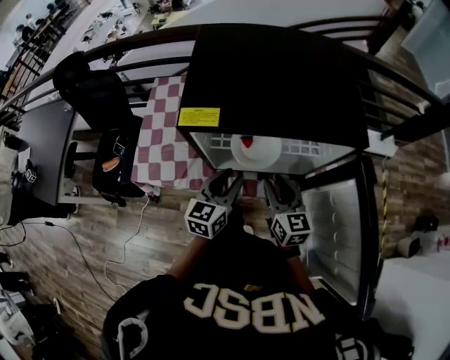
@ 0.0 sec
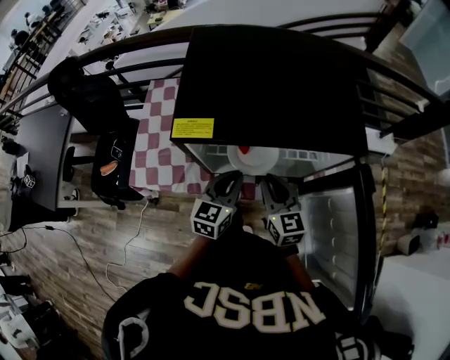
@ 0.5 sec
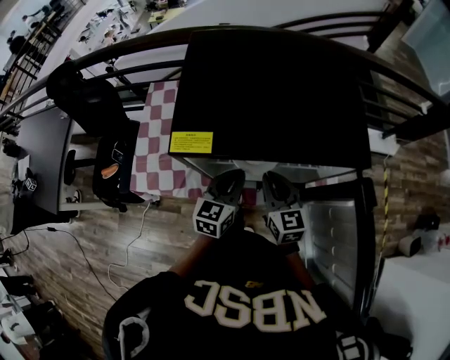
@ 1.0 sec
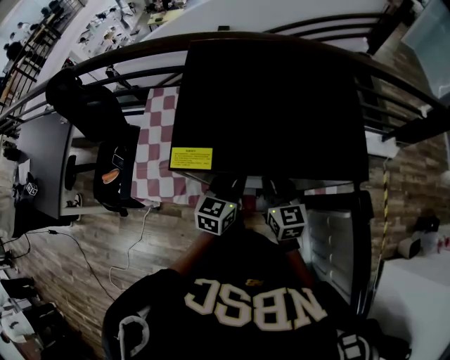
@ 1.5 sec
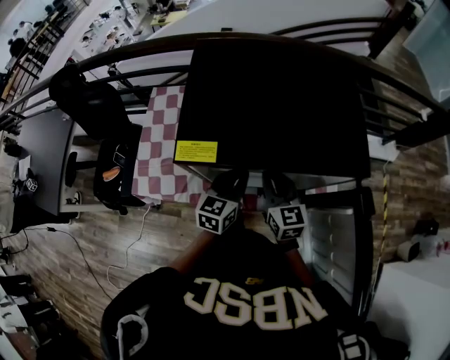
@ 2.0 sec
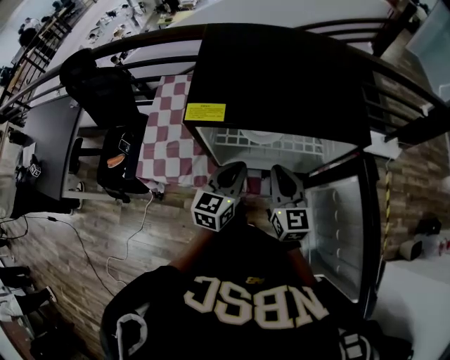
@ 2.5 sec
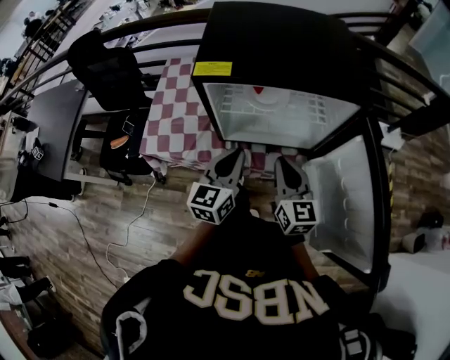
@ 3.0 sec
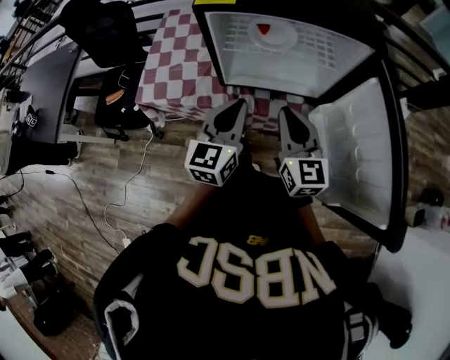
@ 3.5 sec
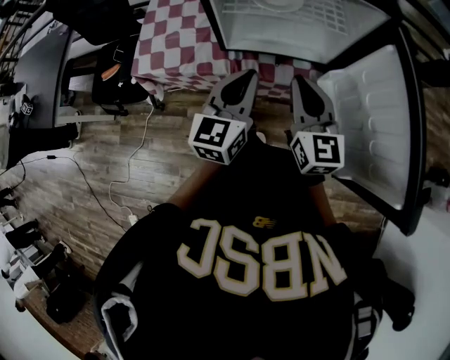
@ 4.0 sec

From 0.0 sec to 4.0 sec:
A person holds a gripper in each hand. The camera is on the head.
From 0.0 sec to 2.0 sec: The grippers both shift forward by some 10 cm. The right gripper closes up. The left gripper closes its fingers.
From 2.0 sec to 4.0 sec: The grippers both shift backward by about 20 cm.

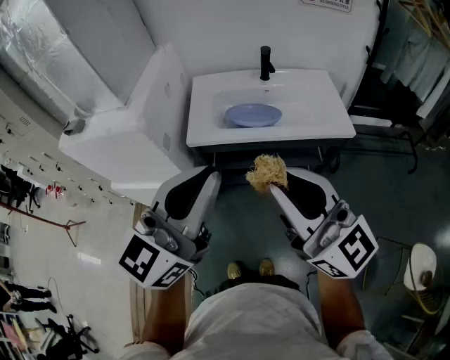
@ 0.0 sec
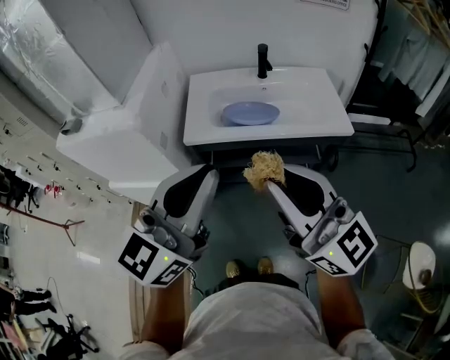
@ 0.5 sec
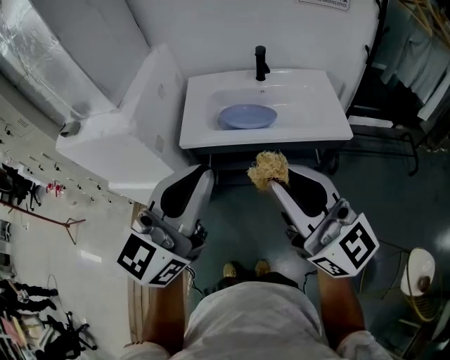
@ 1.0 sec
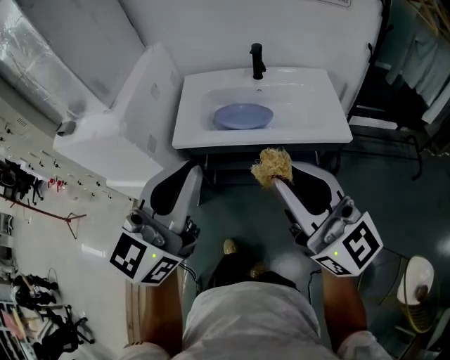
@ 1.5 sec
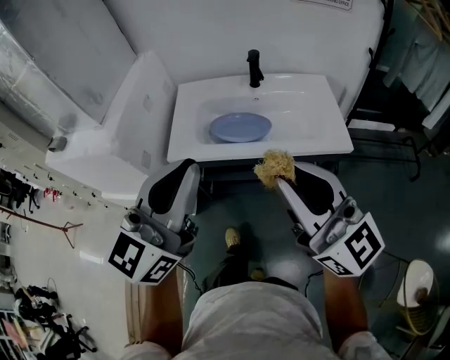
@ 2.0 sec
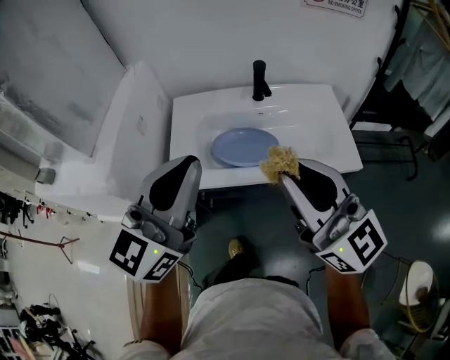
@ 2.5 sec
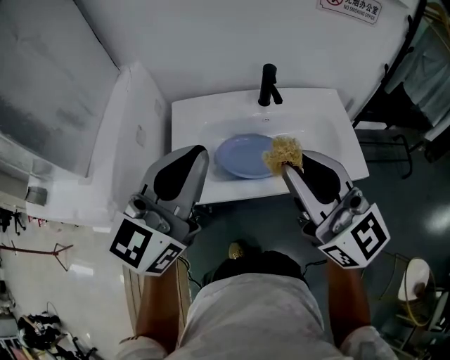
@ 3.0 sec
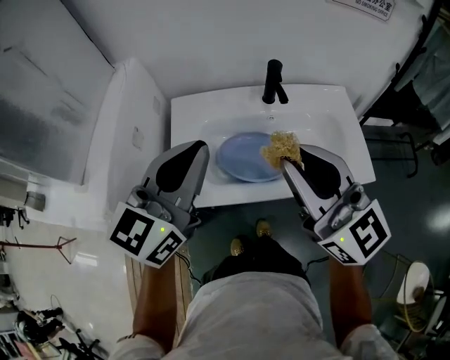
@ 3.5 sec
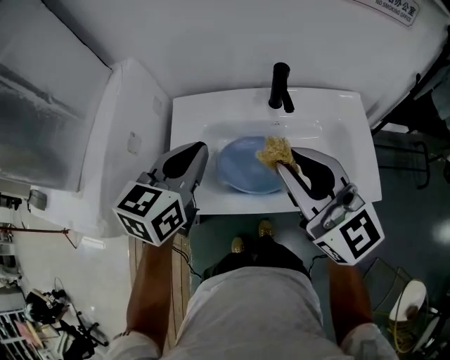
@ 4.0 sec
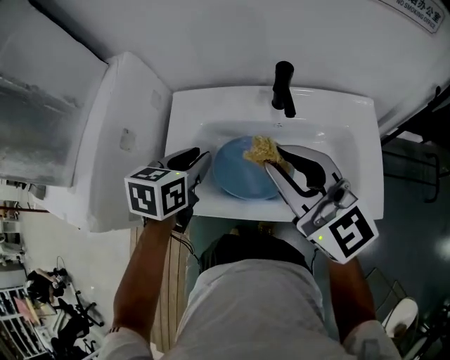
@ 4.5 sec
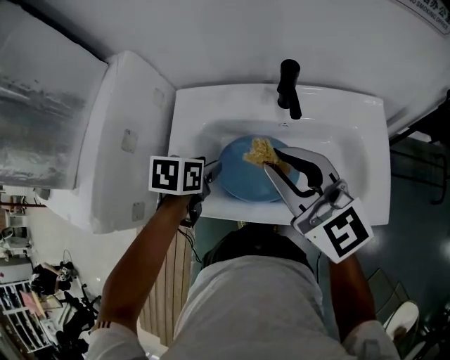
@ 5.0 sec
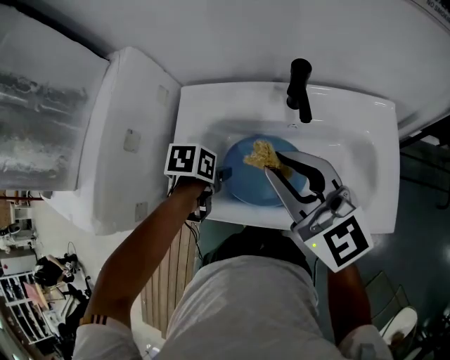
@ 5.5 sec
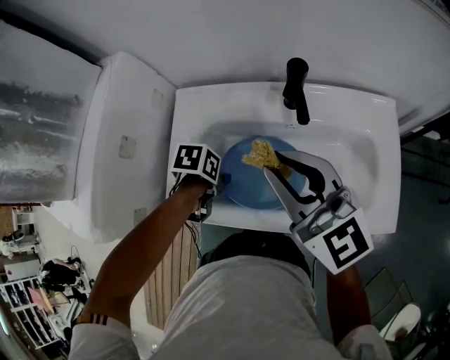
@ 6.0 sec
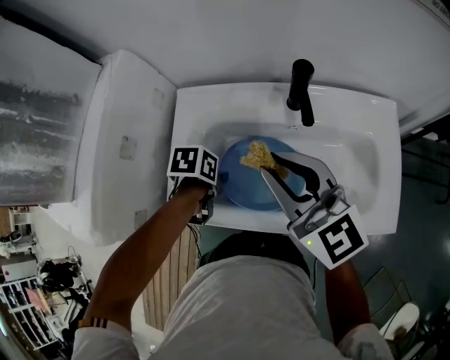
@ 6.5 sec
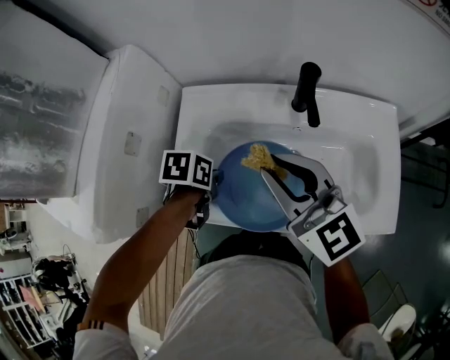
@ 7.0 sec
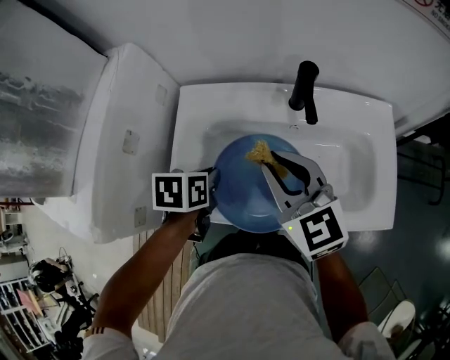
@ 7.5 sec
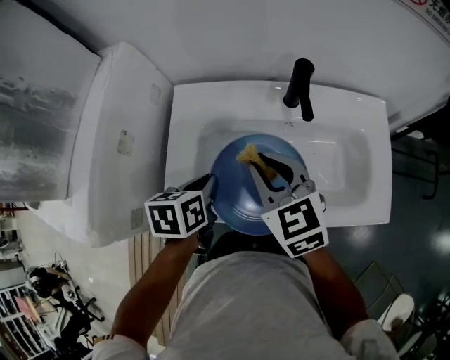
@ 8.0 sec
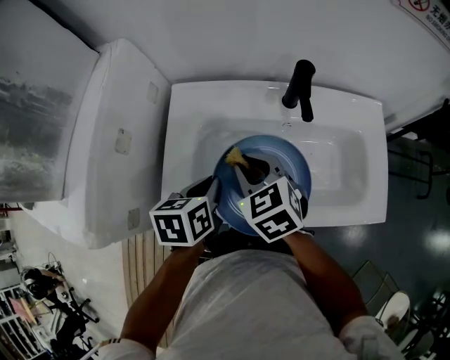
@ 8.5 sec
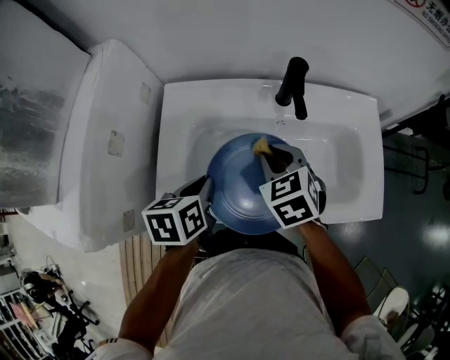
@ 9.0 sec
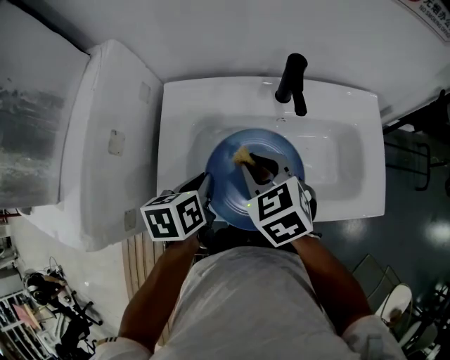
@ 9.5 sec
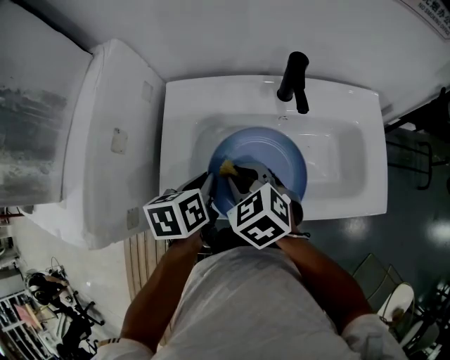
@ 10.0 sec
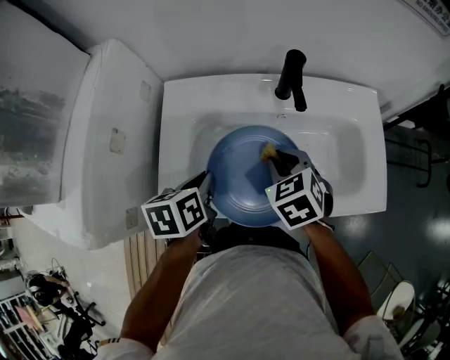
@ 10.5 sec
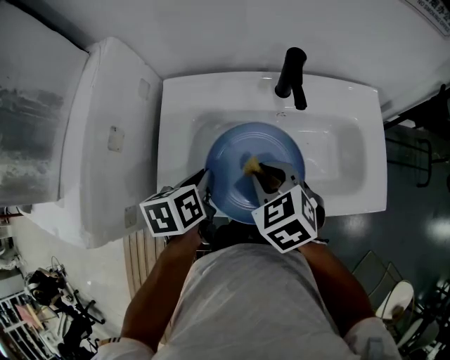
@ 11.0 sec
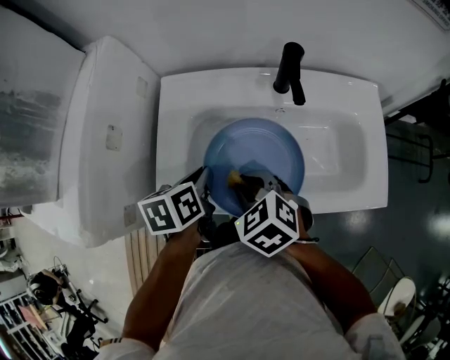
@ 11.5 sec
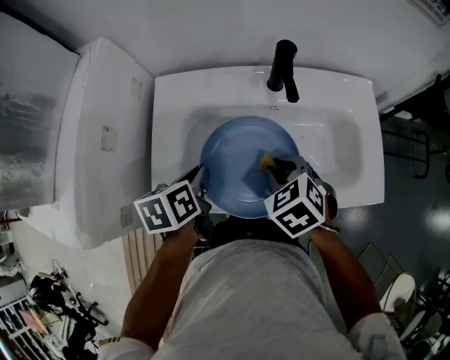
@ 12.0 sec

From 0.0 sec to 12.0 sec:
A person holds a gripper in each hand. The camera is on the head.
From 0.0 sec to 2.0 sec: The right gripper goes approximately 15 cm to the right and forward, while the left gripper travels forward by roughly 10 cm.
From 2.0 sec to 4.0 sec: Both grippers travel together forward, roughly 30 cm. The left gripper turns by some 30 degrees.
From 4.0 sec to 6.0 sec: The right gripper moves forward and downward, some 10 cm. Meanwhile the left gripper heads downward, covering roughly 25 cm, points its fingers about 50 degrees further downward, and opens up.
From 6.0 sec to 8.0 sec: The left gripper heads upward, covering some 10 cm, rotates about 30 degrees, and closes, while the right gripper is displaced downward and to the left by approximately 10 cm, and swivels some 30 degrees.
From 8.0 sec to 10.0 sec: The right gripper is displaced downward by about 5 cm, and rotates approximately 20 degrees.
From 10.0 sec to 12.0 sec: The right gripper goes left and right, approximately 10 cm each way, reversing 2 times.

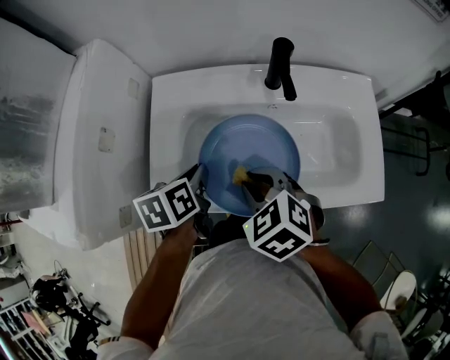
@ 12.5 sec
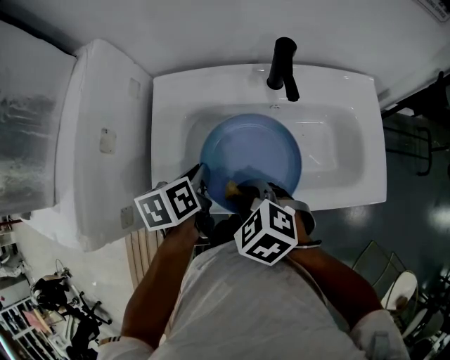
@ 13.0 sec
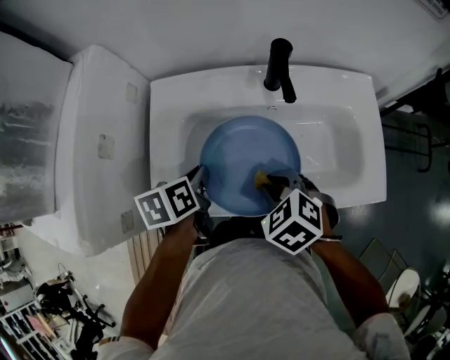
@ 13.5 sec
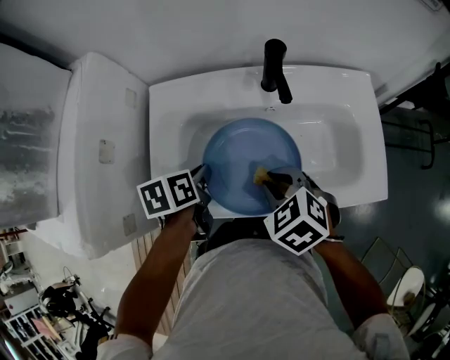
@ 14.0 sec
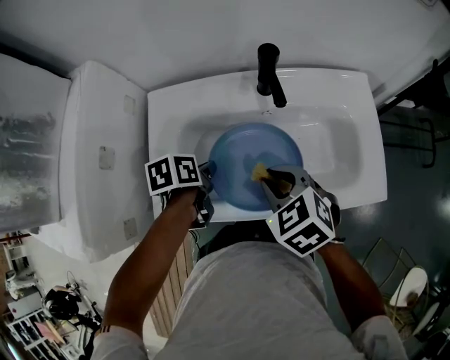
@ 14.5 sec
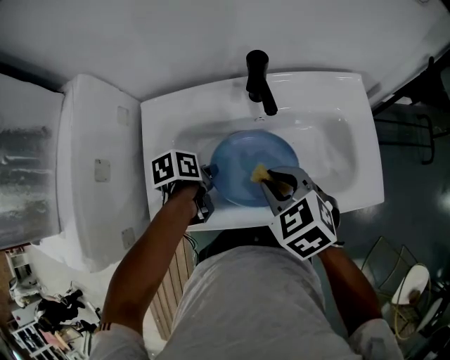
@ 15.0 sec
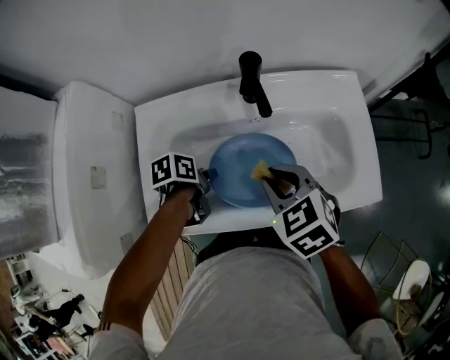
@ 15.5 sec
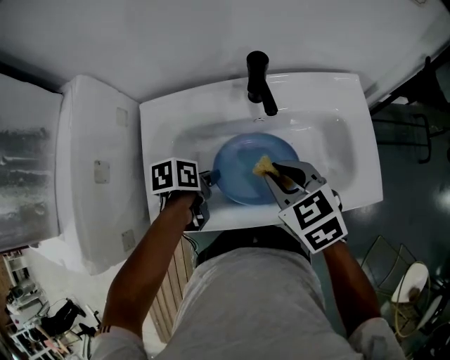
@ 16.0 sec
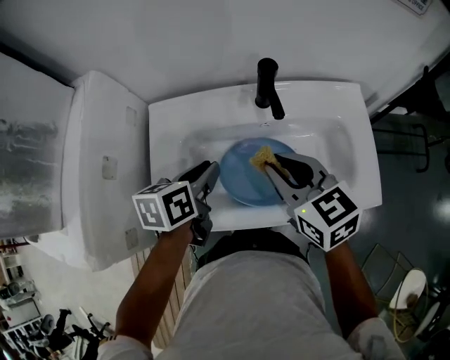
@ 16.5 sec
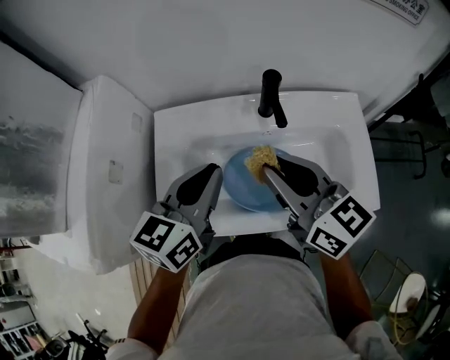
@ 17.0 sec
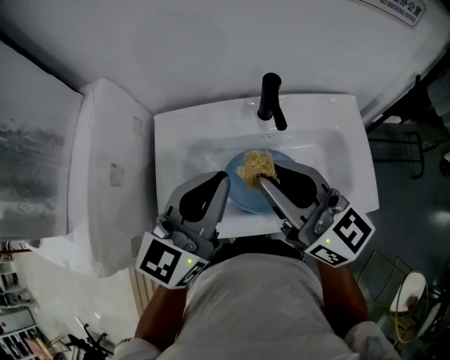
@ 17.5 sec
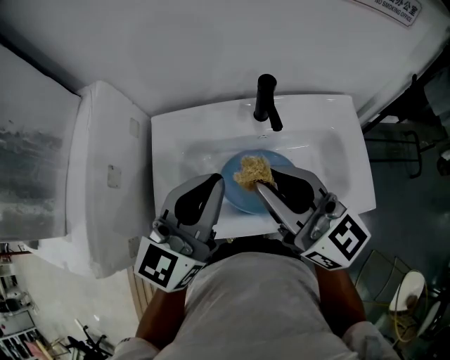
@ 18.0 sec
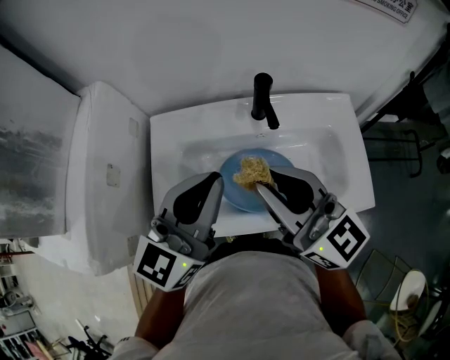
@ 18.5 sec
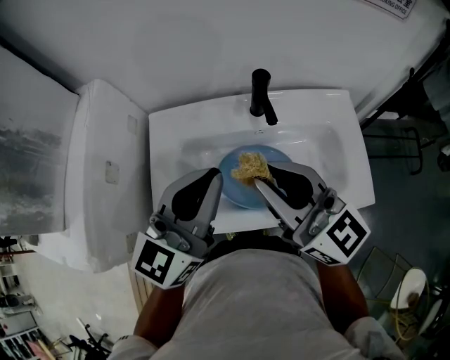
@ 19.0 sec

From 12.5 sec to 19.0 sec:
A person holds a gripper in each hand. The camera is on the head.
From 12.5 sec to 14.5 sec: The right gripper goes roughly 5 cm to the right, while the left gripper ends up some 5 cm from where it was.
From 14.5 sec to 17.0 sec: The two grippers go some 15 cm upward. The left gripper tilts its fingers approximately 40 degrees upward, while the right gripper points its fingers some 40 degrees further upward.
From 17.0 sec to 19.0 sec: The right gripper changes place by some 5 cm. Meanwhile the left gripper travels upward by approximately 5 cm, and turns by roughly 20 degrees.

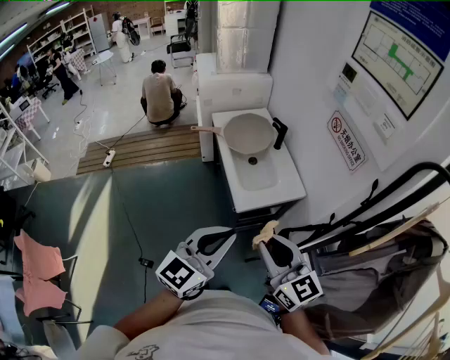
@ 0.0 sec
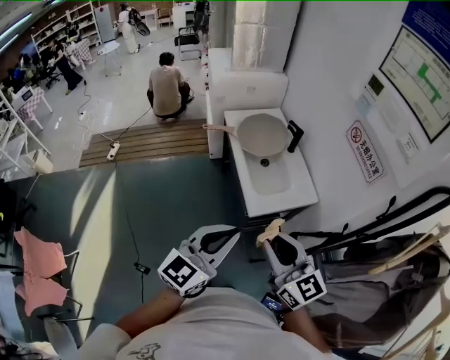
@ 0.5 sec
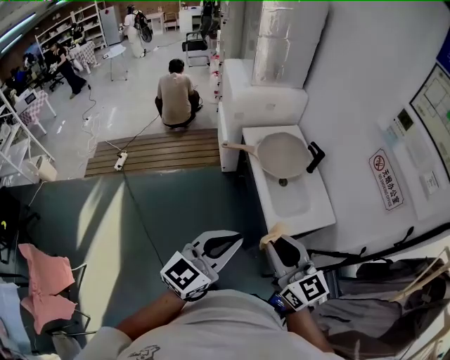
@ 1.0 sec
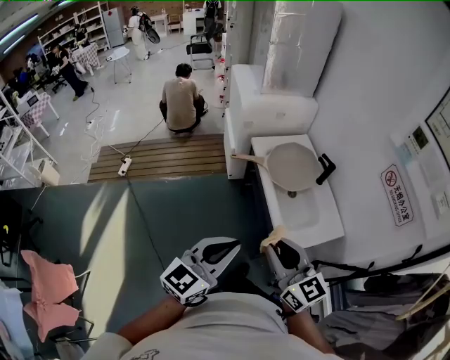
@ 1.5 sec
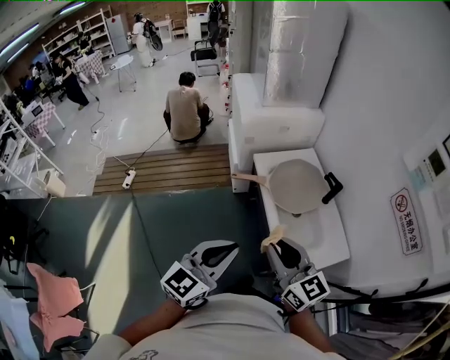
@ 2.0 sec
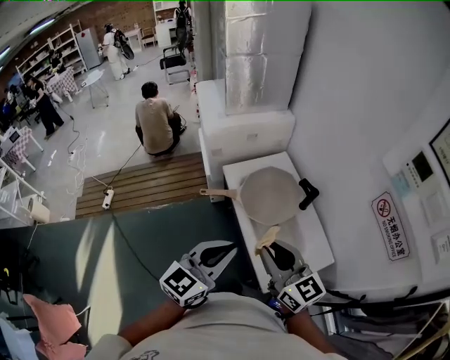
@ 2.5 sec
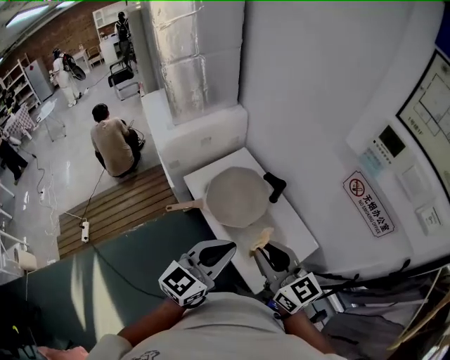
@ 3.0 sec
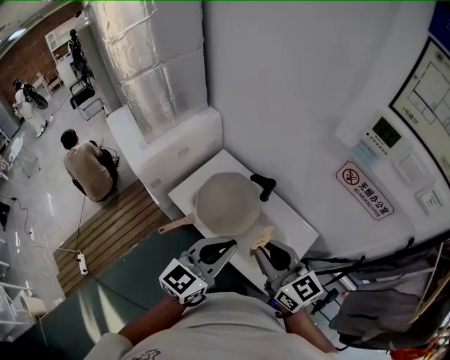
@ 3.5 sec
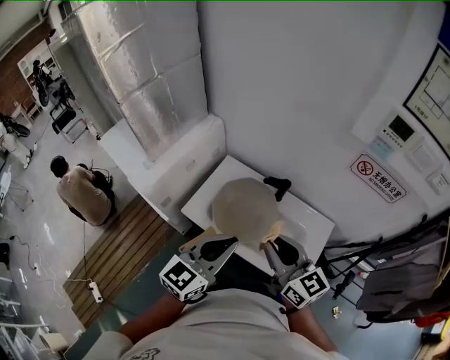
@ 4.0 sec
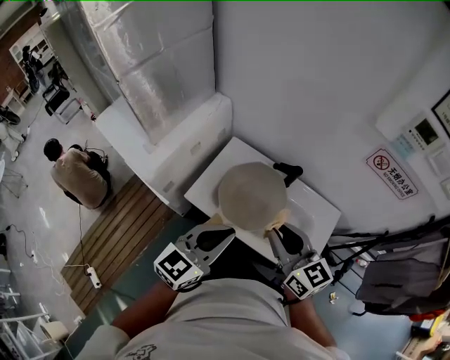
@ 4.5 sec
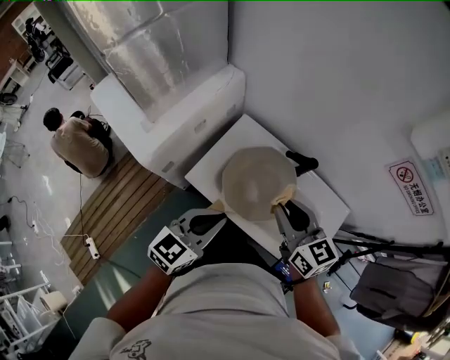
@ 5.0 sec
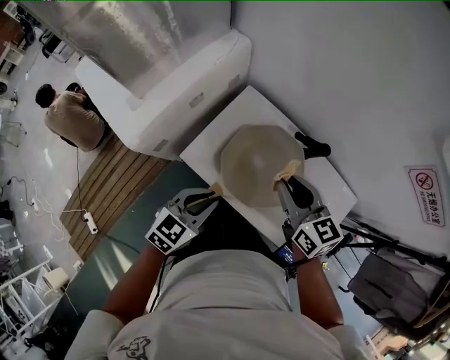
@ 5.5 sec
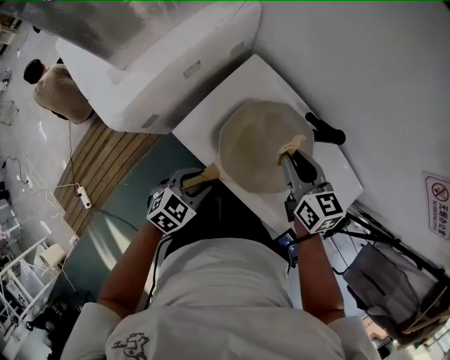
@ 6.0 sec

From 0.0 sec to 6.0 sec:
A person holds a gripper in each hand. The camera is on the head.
From 0.0 sec to 2.0 sec: Both grippers travel together forward and to the left, approximately 35 cm.
From 2.0 sec to 4.0 sec: The left gripper changes place by some 30 cm, and rotates some 50 degrees, while the right gripper shifts by about 25 cm, and swivels some 40 degrees.
From 4.0 sec to 6.0 sec: The right gripper travels downward and forward by roughly 30 cm, and turns by about 30 degrees. The left gripper goes approximately 35 cm downward, tilts its fingers about 40 degrees downward, and opens.
